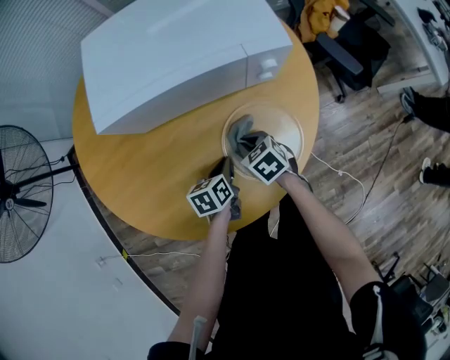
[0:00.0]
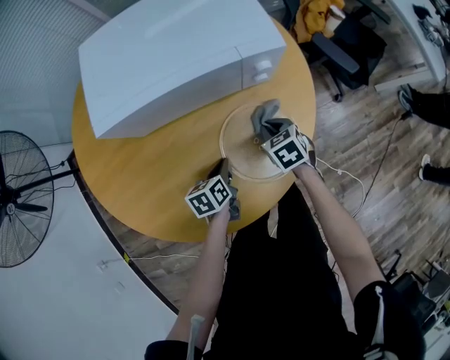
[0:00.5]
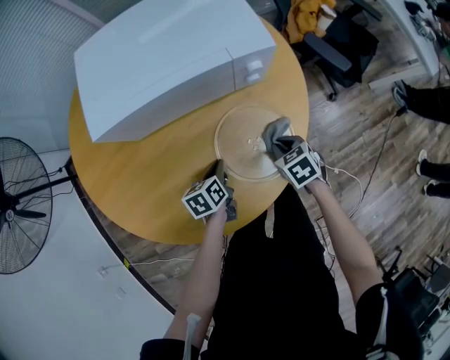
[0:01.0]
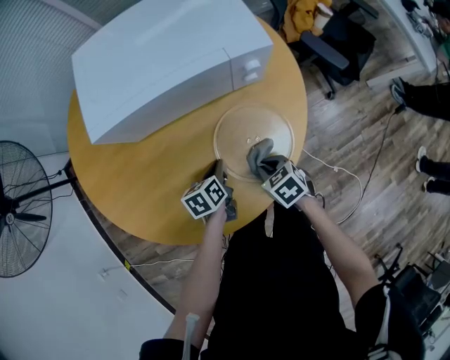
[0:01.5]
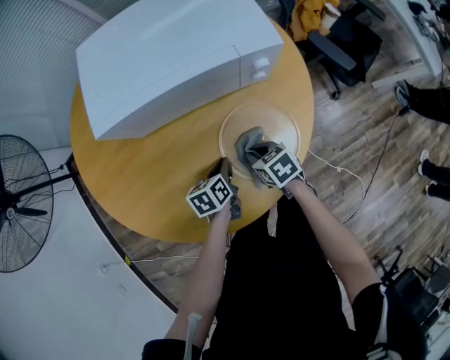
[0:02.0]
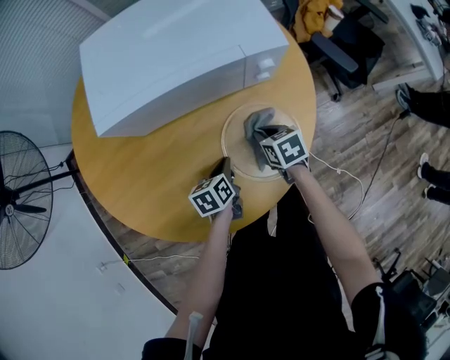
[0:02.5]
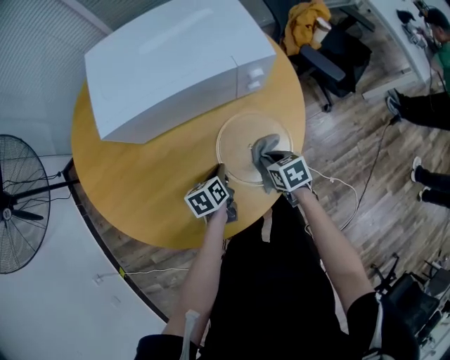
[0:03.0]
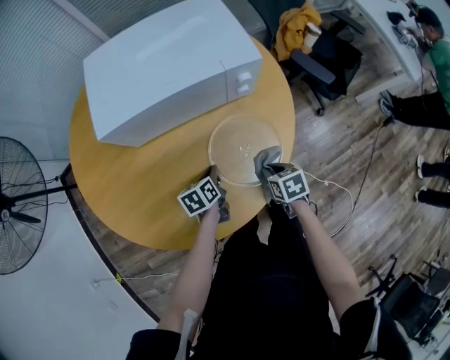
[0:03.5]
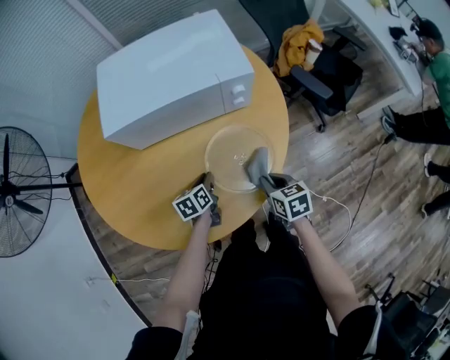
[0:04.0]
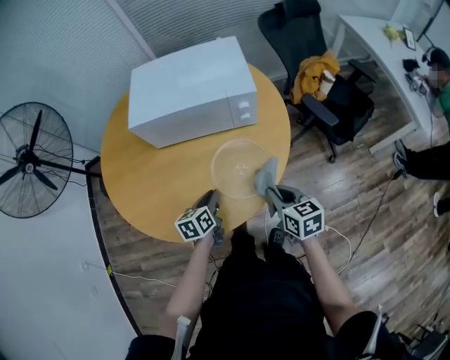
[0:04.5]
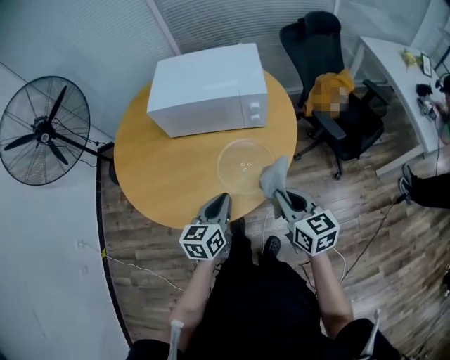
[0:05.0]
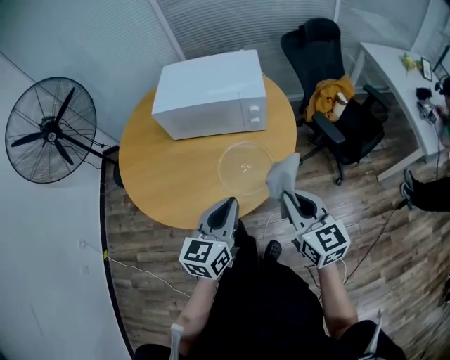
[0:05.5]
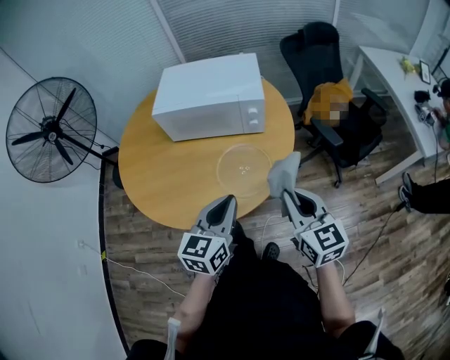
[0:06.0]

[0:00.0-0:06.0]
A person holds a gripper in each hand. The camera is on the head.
0:00.0 to 0:02.0: The right gripper reaches about 10 cm to the right, then returns.
0:02.0 to 0:04.0: The right gripper shifts about 15 cm to the right, backward and upward.
0:04.0 to 0:06.0: The right gripper goes approximately 25 cm upward, and points its fingers roughly 30 degrees further upward. Meanwhile the left gripper moves upward and backward, roughly 35 cm, and swivels about 40 degrees.

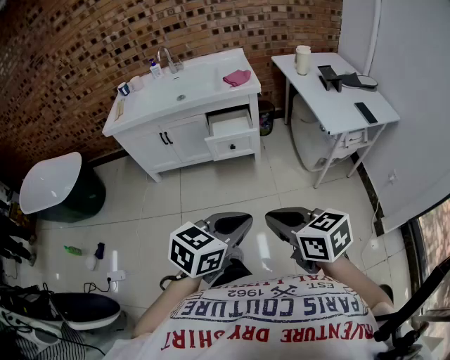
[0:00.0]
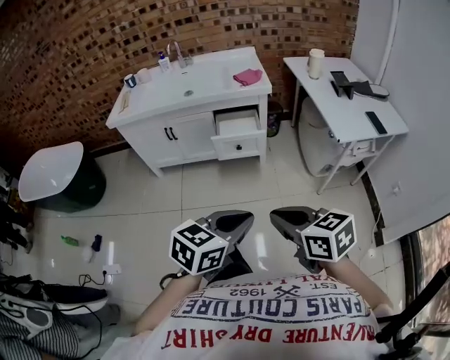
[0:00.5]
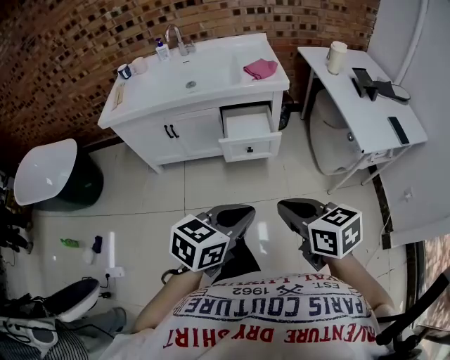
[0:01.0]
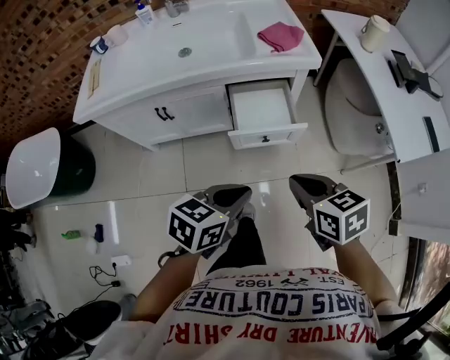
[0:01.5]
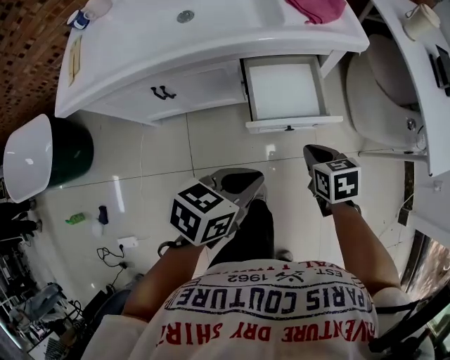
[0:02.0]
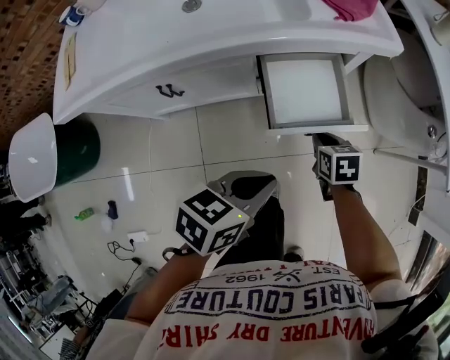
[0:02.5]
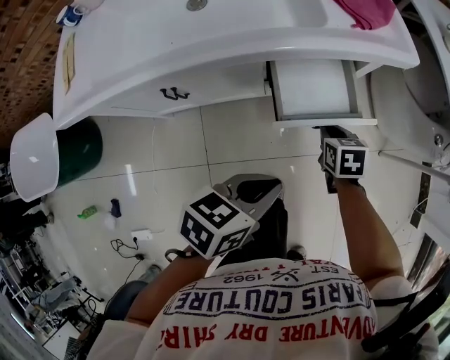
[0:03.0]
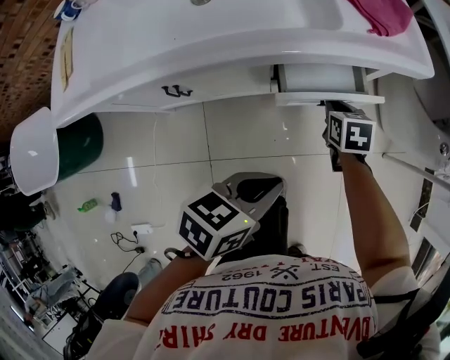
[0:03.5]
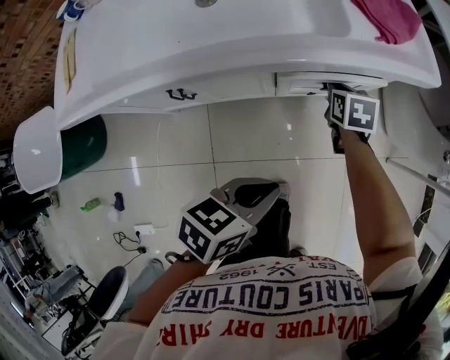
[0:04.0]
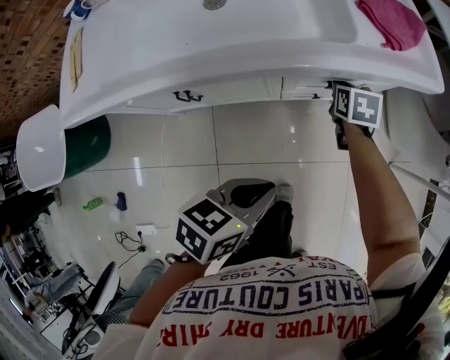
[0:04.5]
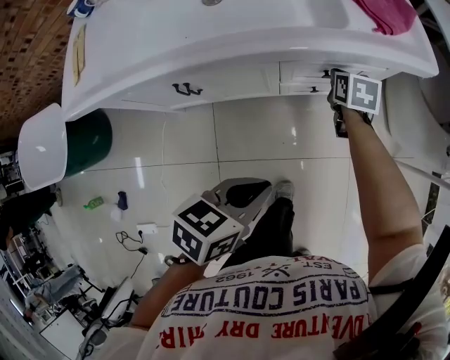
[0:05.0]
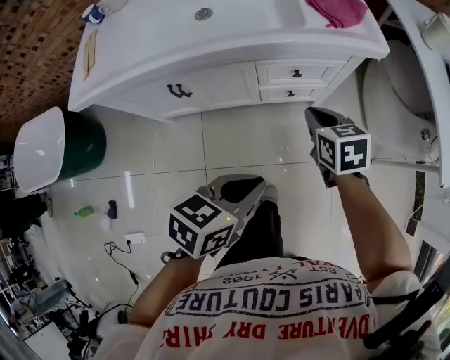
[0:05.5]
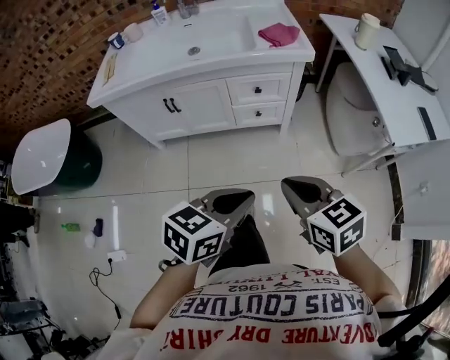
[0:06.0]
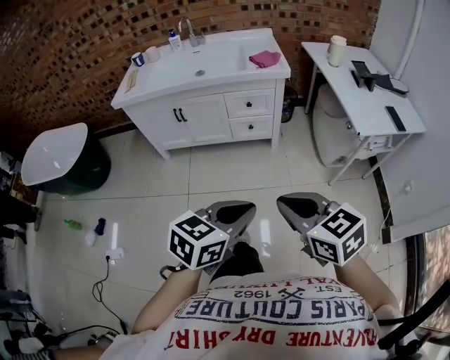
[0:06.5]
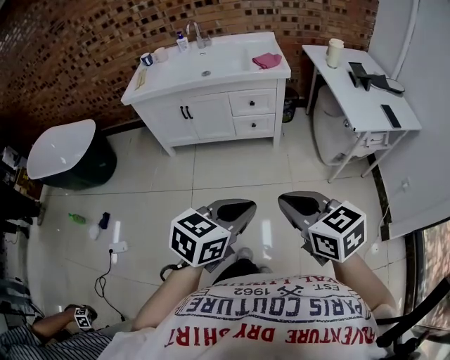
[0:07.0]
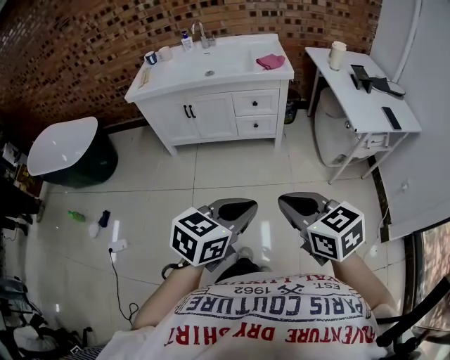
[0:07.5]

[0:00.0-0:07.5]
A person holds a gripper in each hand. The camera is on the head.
0:00.0 to 0:02.0: Both grippers are carried forward, roughly 50 cm. The right gripper travels downward by approximately 30 cm, and rotates some 30 degrees. Meanwhile the left gripper moves downward, roughly 20 cm, and changes its angle by about 30 degrees.
0:02.0 to 0:04.0: The right gripper moves forward and to the left, about 25 cm, while the left gripper heads to the left, forward and downward, covering approximately 10 cm.
0:04.0 to 0:05.5: The right gripper goes some 20 cm backward and upward, while the left gripper shifts about 10 cm backward and upward.
0:05.5 to 0:07.5: The pair of grippers is taken backward, about 60 cm. Both grippers travel together upward, about 25 cm. The left gripper rotates about 20 degrees, while the right gripper rotates approximately 30 degrees.

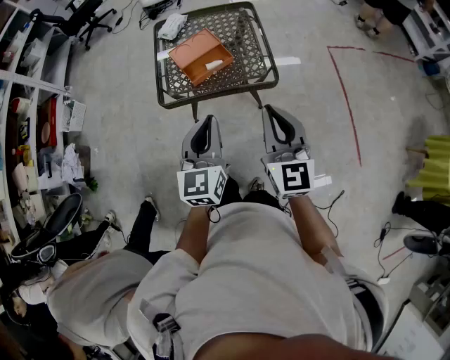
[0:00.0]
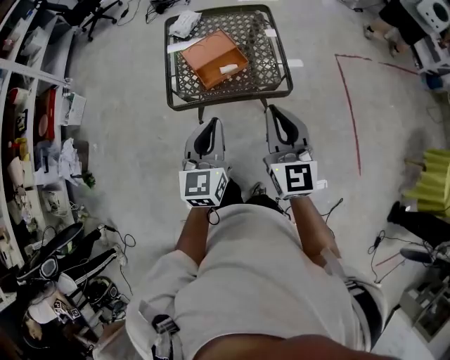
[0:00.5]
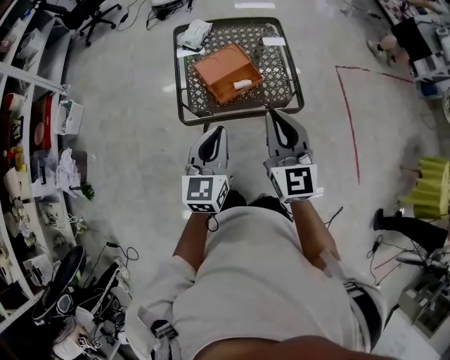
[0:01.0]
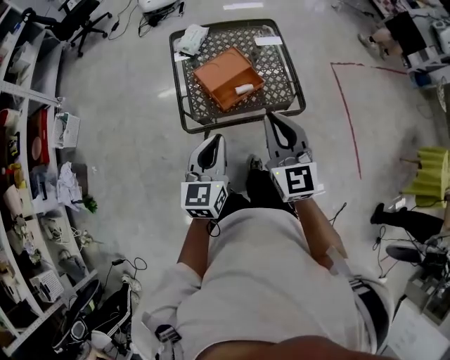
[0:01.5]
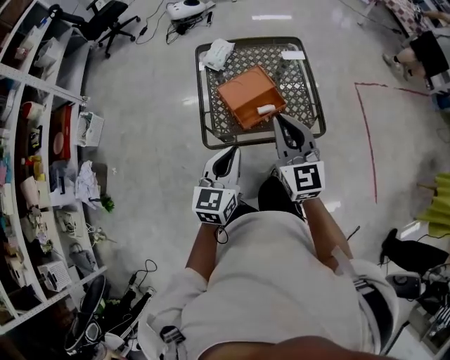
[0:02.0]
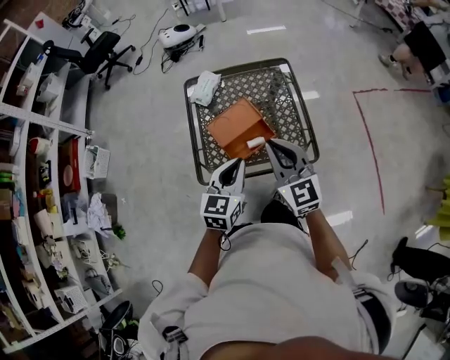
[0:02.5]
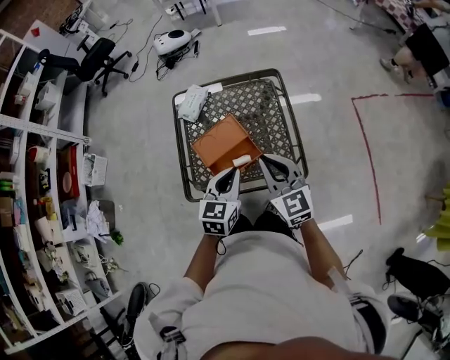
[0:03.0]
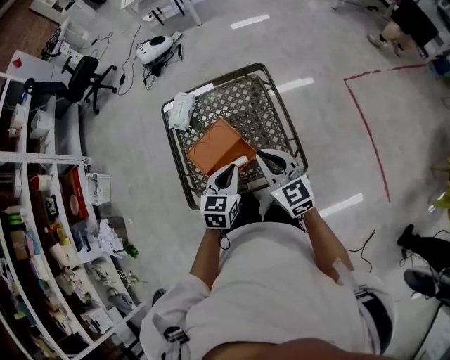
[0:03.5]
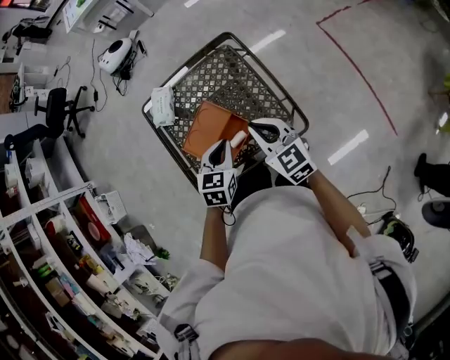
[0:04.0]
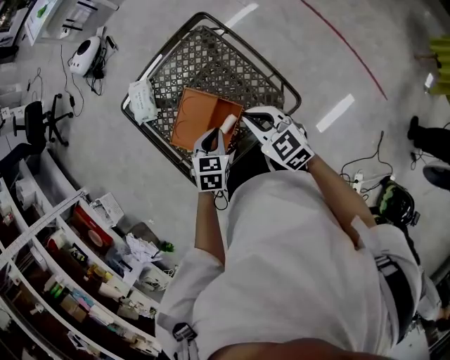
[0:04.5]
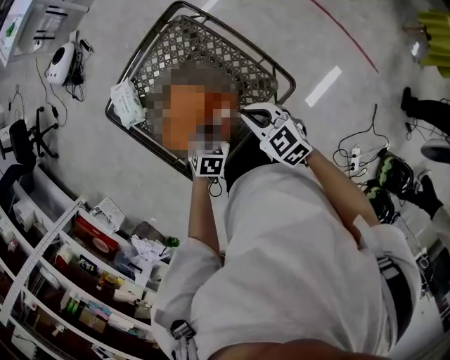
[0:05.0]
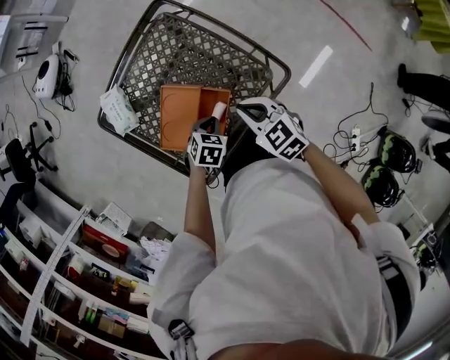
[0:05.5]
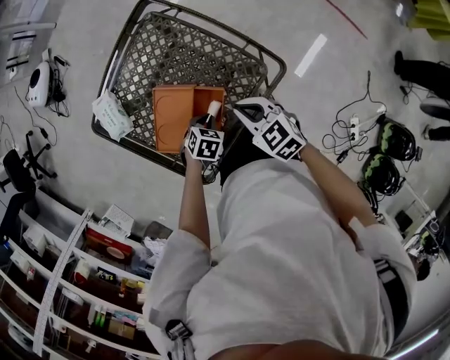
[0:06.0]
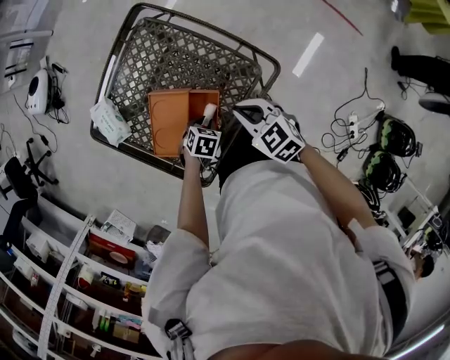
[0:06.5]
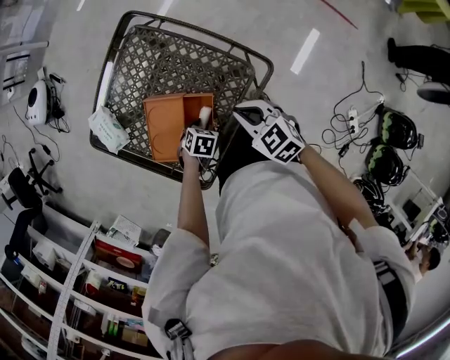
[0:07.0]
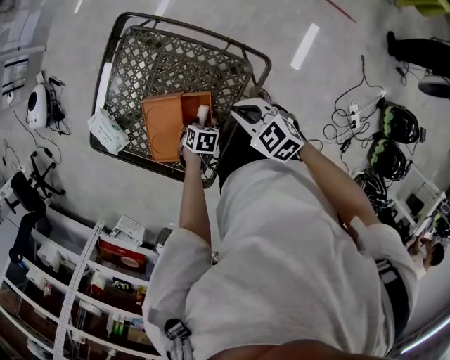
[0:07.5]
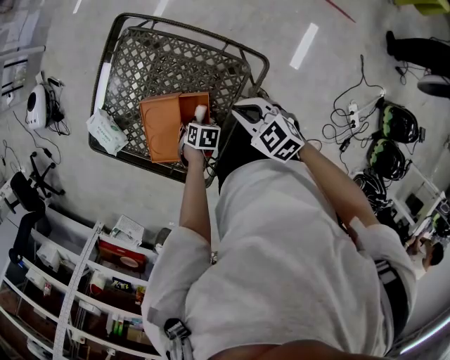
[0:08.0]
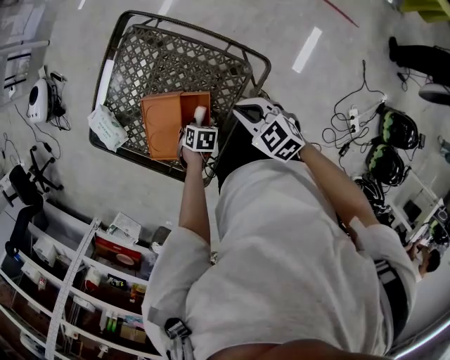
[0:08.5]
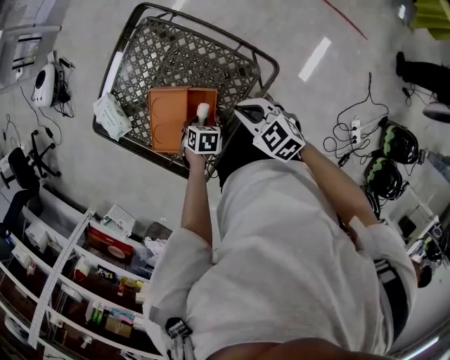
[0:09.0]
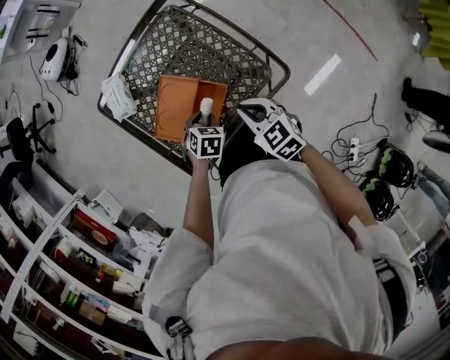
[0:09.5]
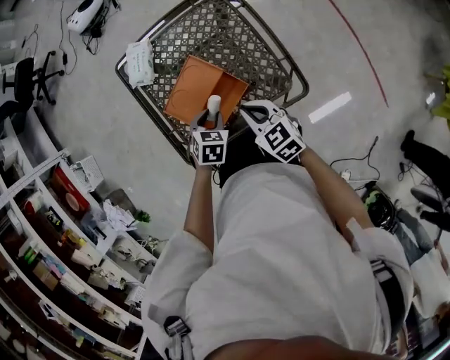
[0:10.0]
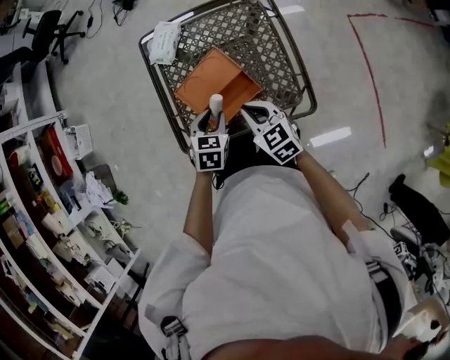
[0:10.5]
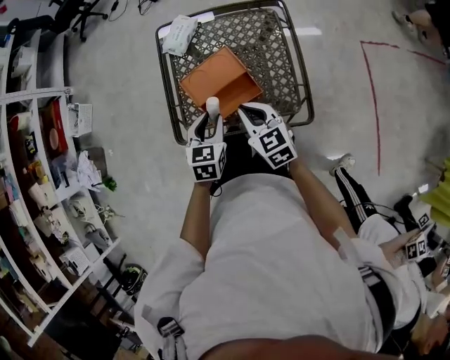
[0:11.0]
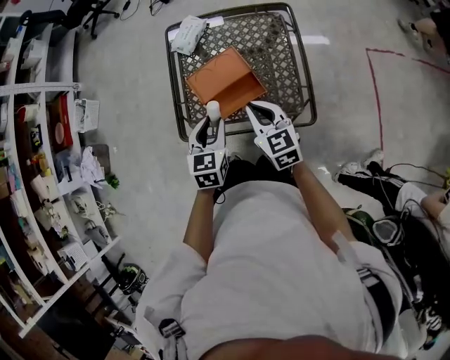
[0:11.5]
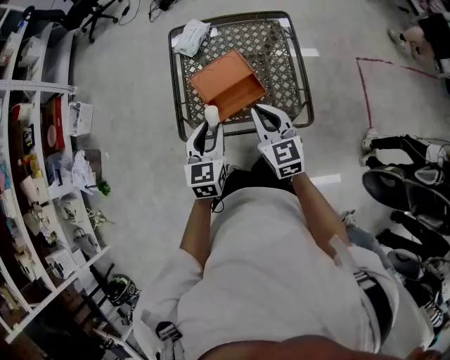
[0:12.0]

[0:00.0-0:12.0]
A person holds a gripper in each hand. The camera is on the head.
0:00.0 to 0:02.0: The right gripper travels forward and to the left by approximately 30 cm. Meanwhile the left gripper shifts some 20 cm to the left and forward.
0:02.0 to 0:04.0: The left gripper travels forward, to the right and downward by some 30 cm, and rotates roughly 30 degrees. Meanwhile the right gripper moves forward, downward and to the right, approximately 25 cm.
0:04.0 to 0:06.0: The left gripper shifts about 25 cm downward, and tilts its fingers about 30 degrees downward. The right gripper shifts about 15 cm downward, and changes its angle by roughly 30 degrees.
0:06.0 to 0:08.0: The left gripper opens.
0:08.0 to 0:10.0: The left gripper moves upward, approximately 15 cm, and swivels some 40 degrees. Meanwhile the right gripper shifts by about 10 cm, and rotates about 20 degrees.
0:10.0 to 0:12.0: The right gripper travels upward and backward by about 10 cm. Meanwhile the left gripper moves upward and backward, about 20 cm, and angles its fingers upward, by roughly 30 degrees.

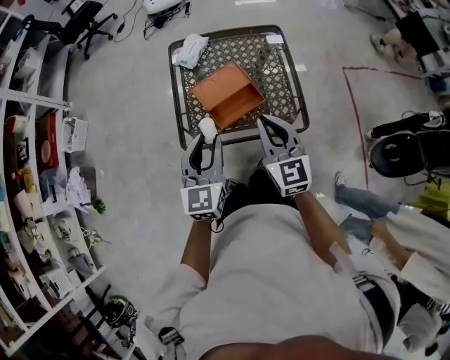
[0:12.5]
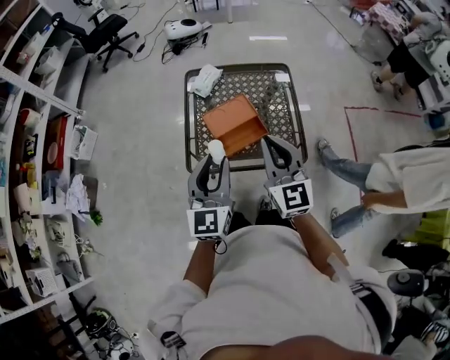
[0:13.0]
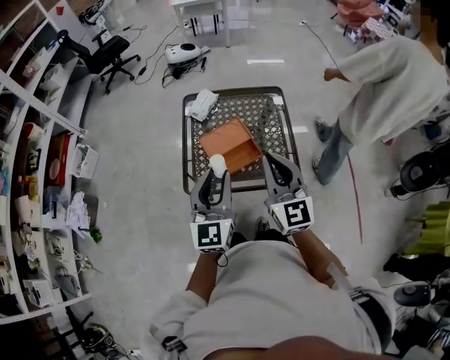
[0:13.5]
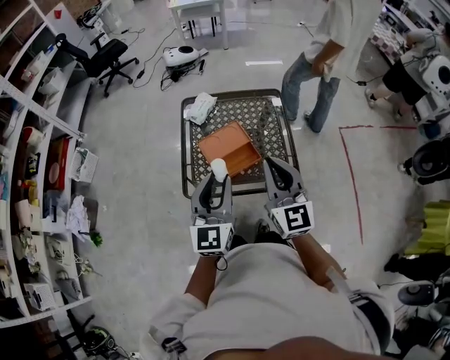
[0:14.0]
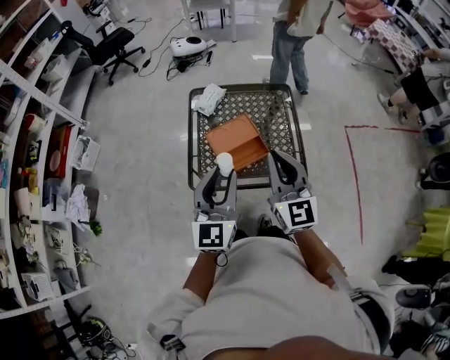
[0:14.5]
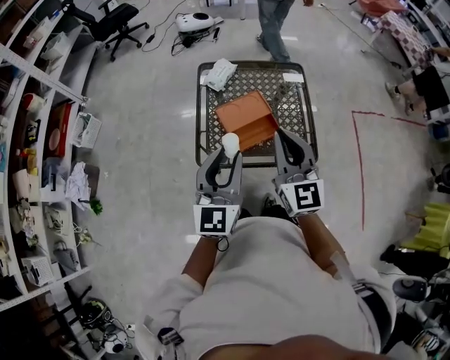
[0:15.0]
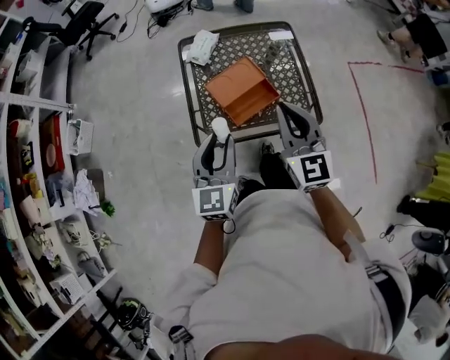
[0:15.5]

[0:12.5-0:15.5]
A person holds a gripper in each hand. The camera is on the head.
0:12.5 to 0:14.0: The two grippers go about 10 cm upward.
0:14.0 to 0:15.5: The grippers both shift to the left and downward by about 10 cm.
